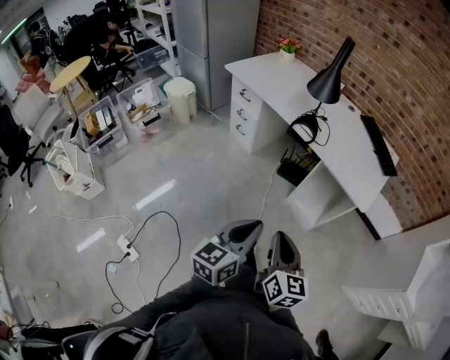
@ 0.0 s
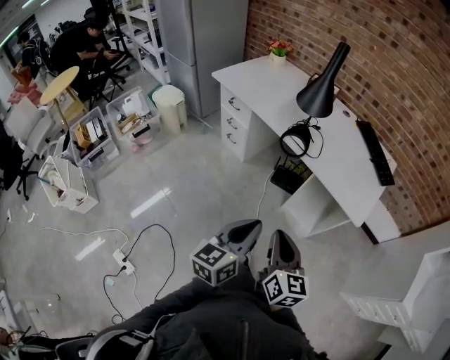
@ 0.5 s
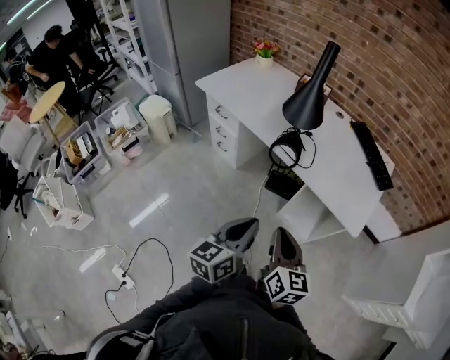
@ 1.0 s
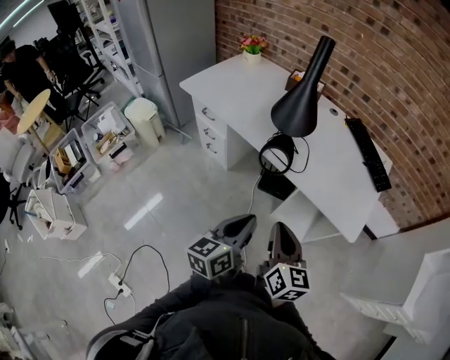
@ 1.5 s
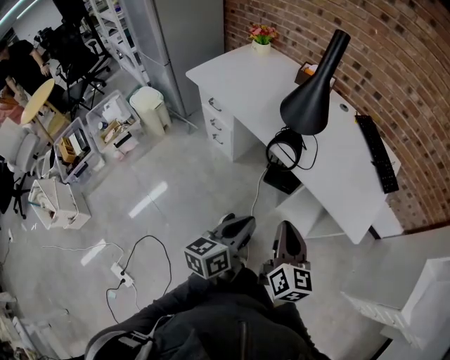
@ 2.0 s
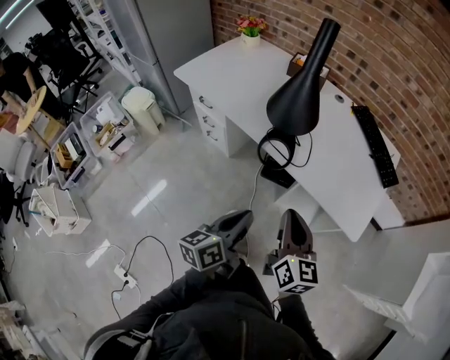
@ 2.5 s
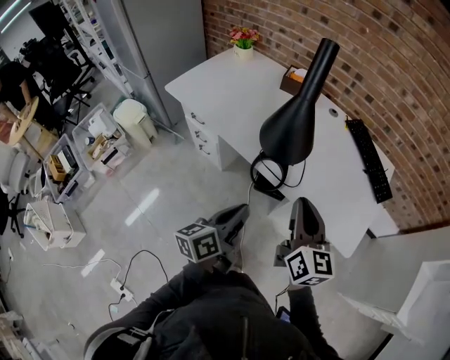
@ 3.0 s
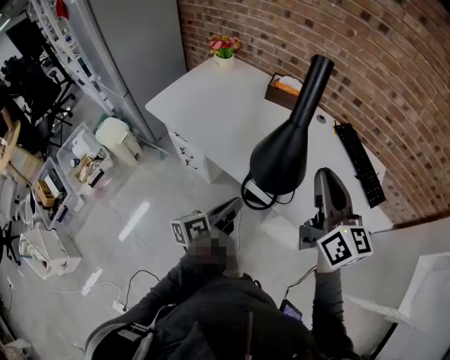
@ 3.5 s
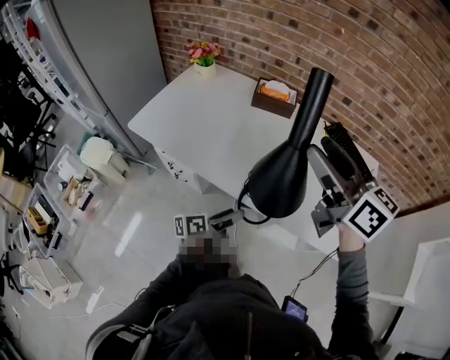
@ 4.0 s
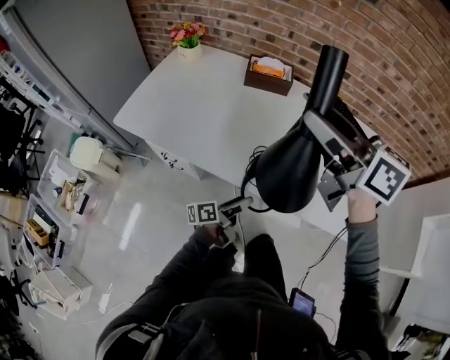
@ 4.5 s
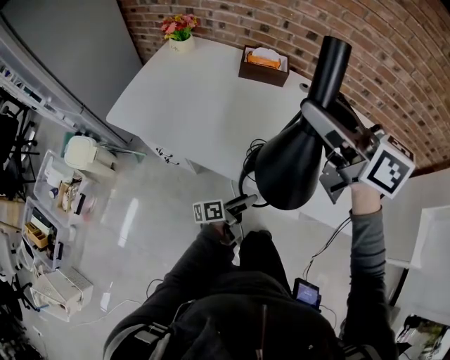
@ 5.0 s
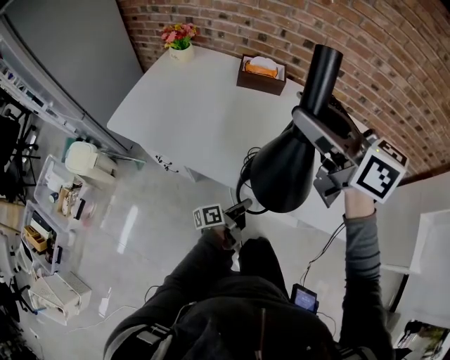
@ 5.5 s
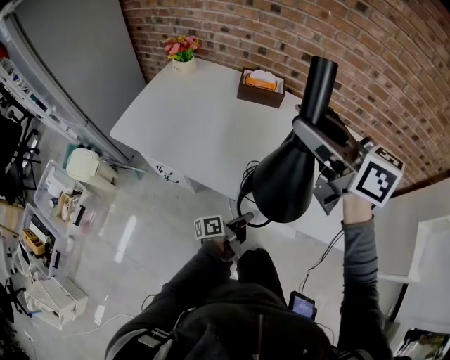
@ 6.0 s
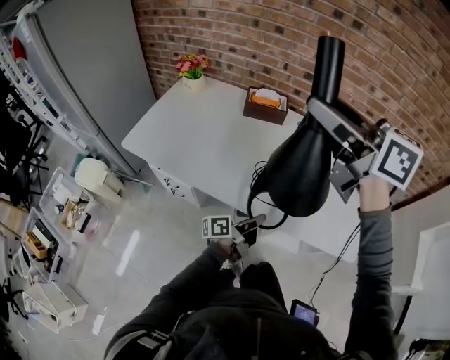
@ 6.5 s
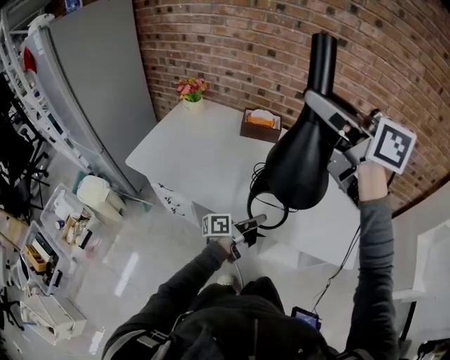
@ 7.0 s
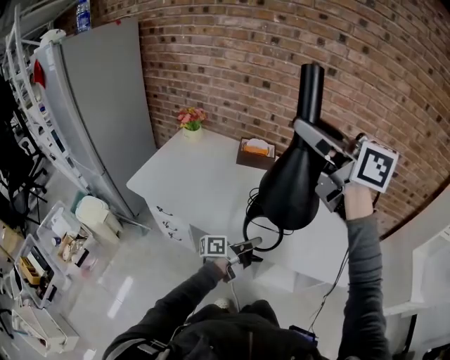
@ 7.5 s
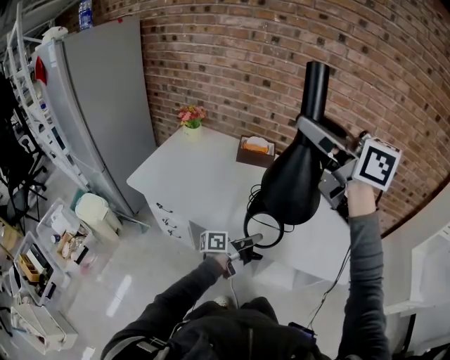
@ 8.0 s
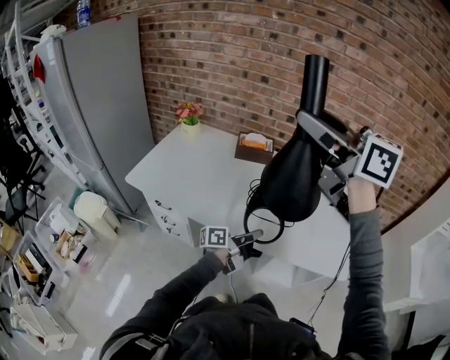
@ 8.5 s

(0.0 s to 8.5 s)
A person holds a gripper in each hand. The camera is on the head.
0.0 s - 2.0 s: Both grippers move forward, about 25 cm.
2.0 s - 4.0 s: The left gripper goes about 25 cm forward, rotates roughly 40 degrees, and opens up. Meanwhile the right gripper shifts about 40 cm forward and upward, swivels roughly 20 degrees, and opens its fingers.
4.0 s - 6.5 s: The right gripper heads upward, covering approximately 10 cm, while the left gripper moves to the right, about 10 cm, moves about 10 cm downward and comes back, and closes up.
6.5 s - 8.5 s: The left gripper is displaced upward by about 5 cm. Meanwhile the right gripper moves upward and backward, roughly 10 cm.

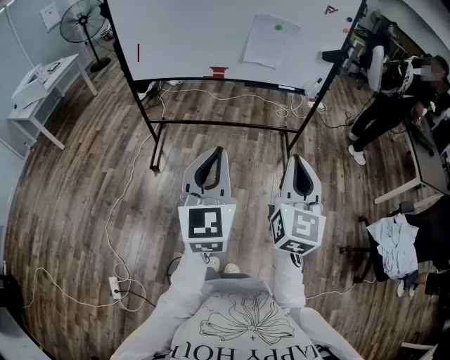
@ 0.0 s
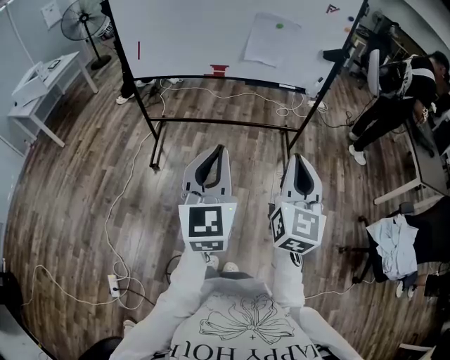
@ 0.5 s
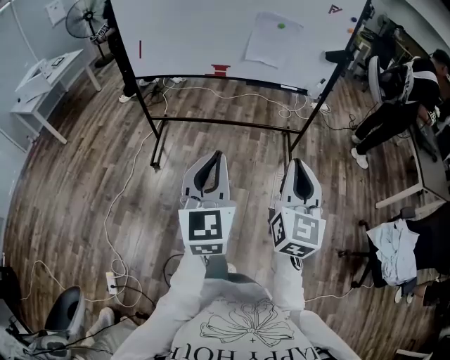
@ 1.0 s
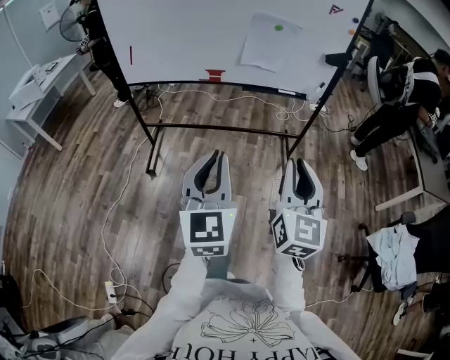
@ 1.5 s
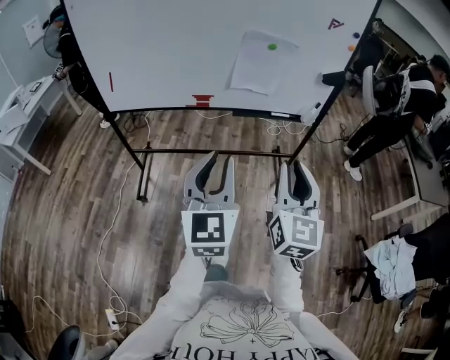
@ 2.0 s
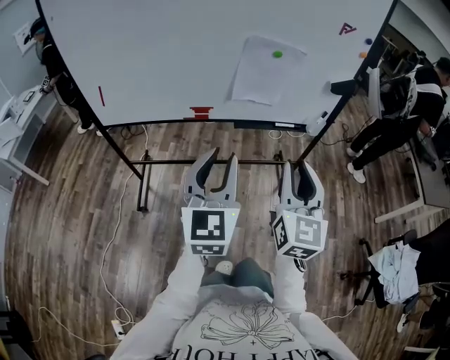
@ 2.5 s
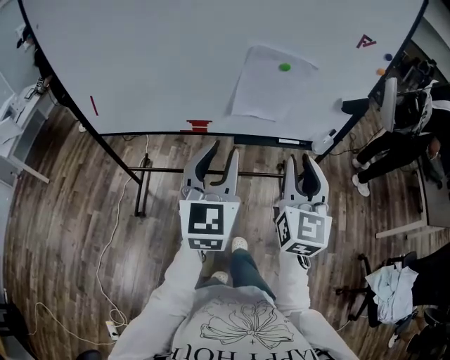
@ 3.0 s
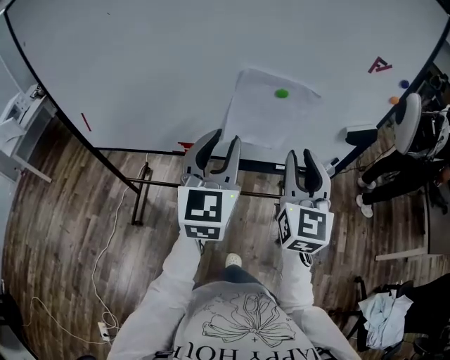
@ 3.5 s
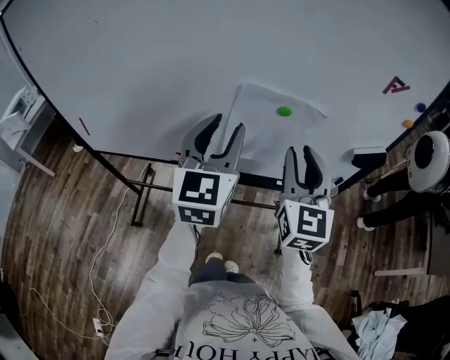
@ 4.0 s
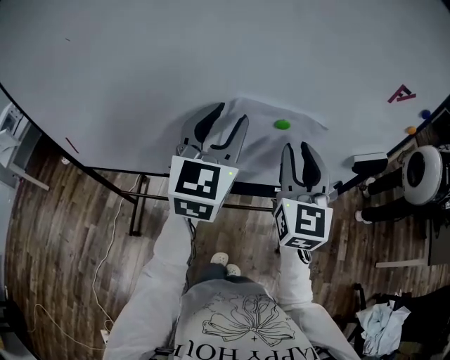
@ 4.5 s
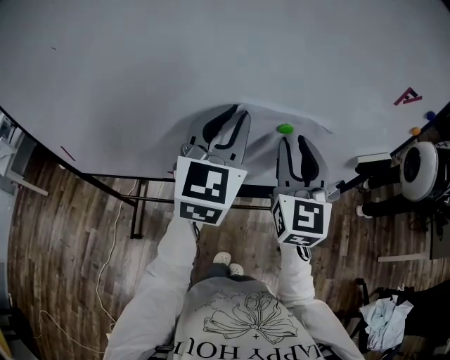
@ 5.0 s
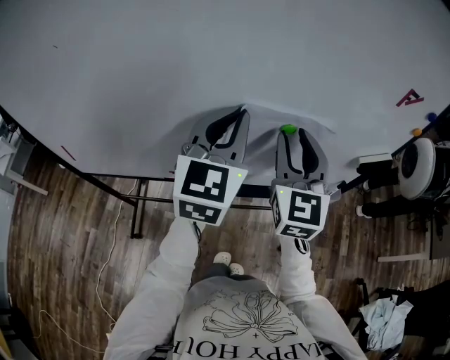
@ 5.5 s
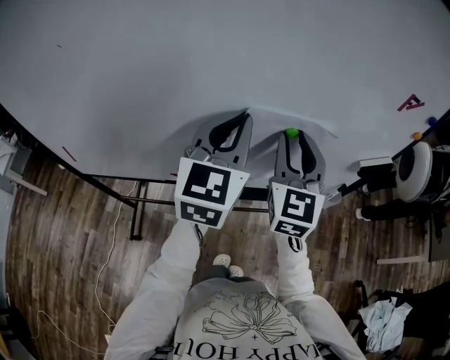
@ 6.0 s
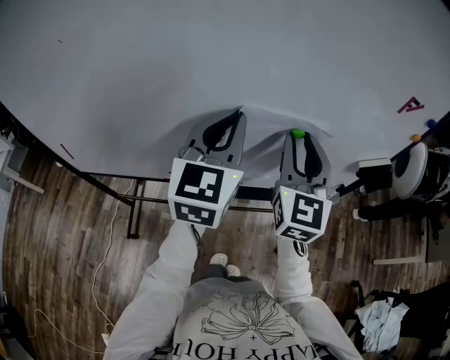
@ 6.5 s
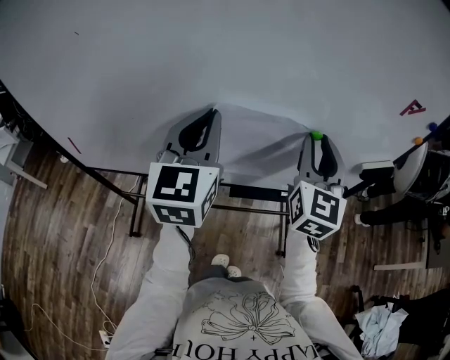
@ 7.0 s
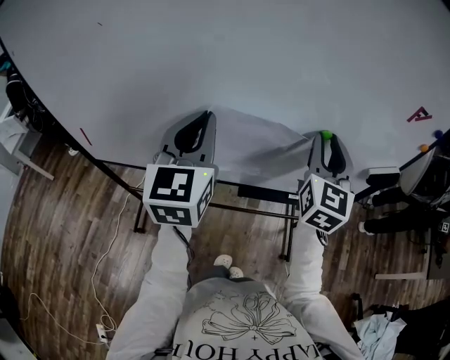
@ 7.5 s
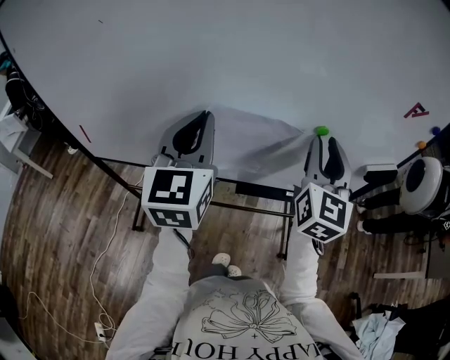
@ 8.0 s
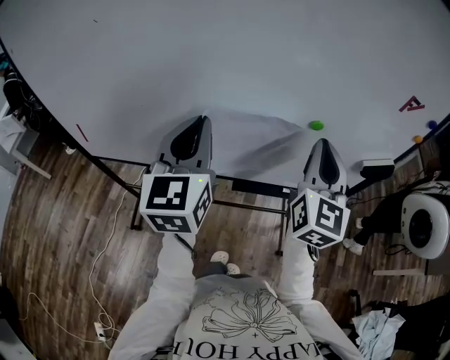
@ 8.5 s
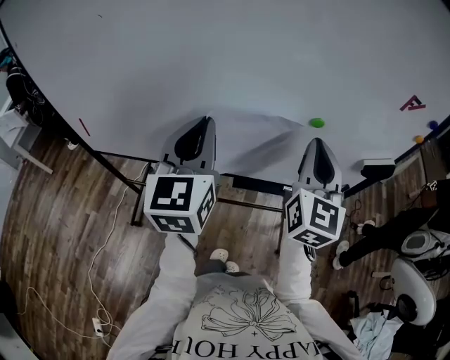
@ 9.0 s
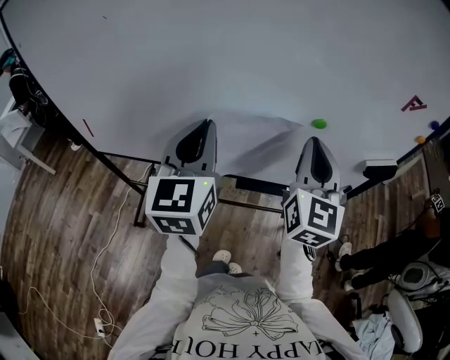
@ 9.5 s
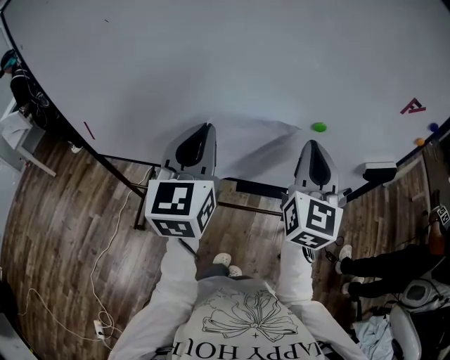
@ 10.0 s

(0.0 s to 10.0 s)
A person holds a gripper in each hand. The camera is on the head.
0.0 s - 2.0 s: Both grippers travel together forward, about 25 cm.
2.0 s - 4.0 s: Both grippers are carried forward, approximately 50 cm.
4.0 s - 6.0 s: Both grippers move forward, some 10 cm. The left gripper closes.
6.0 s - 8.0 s: The left gripper shifts approximately 10 cm to the left and backward. Meanwhile the right gripper shifts by approximately 5 cm.
8.0 s - 10.0 s: The right gripper closes up.

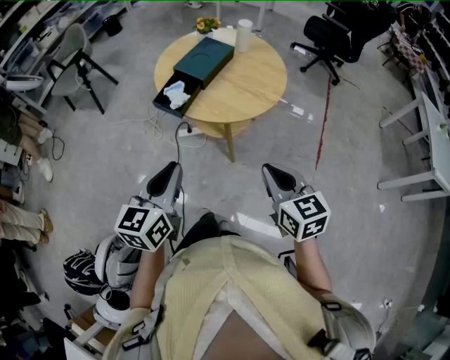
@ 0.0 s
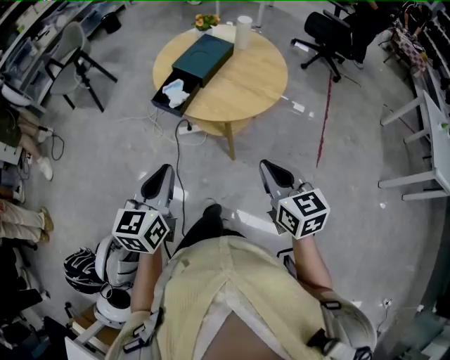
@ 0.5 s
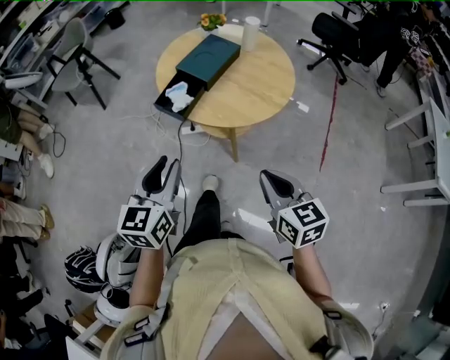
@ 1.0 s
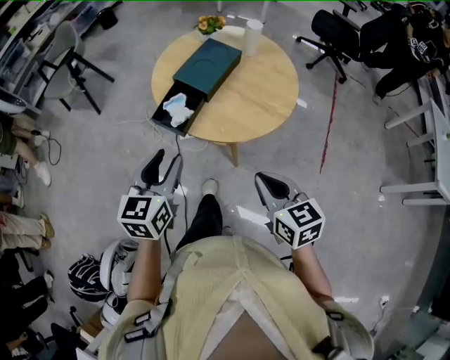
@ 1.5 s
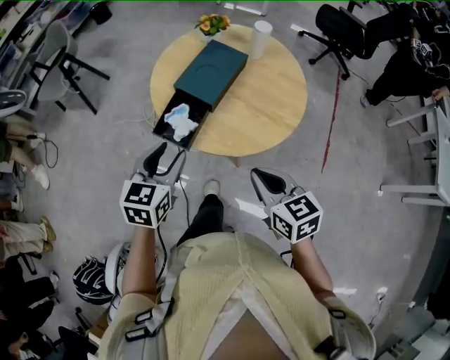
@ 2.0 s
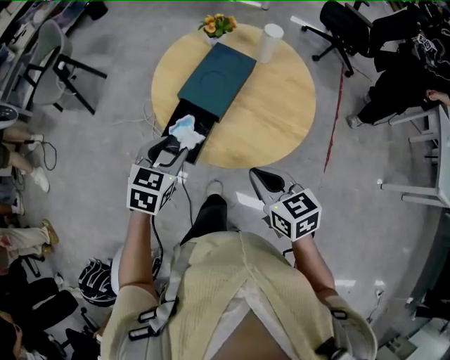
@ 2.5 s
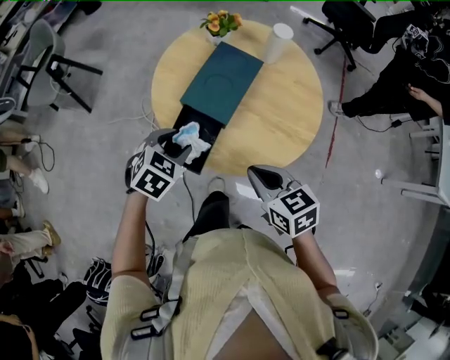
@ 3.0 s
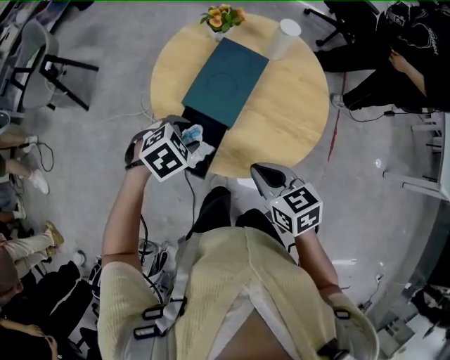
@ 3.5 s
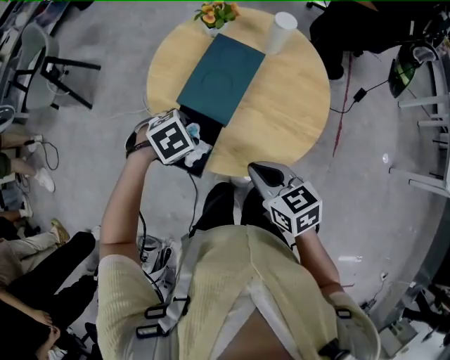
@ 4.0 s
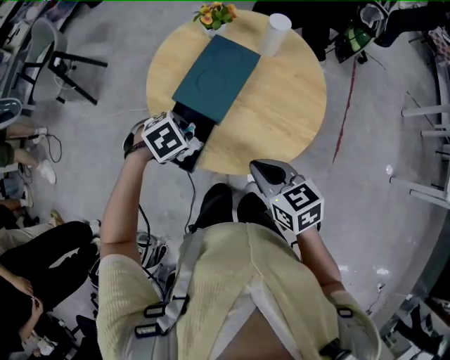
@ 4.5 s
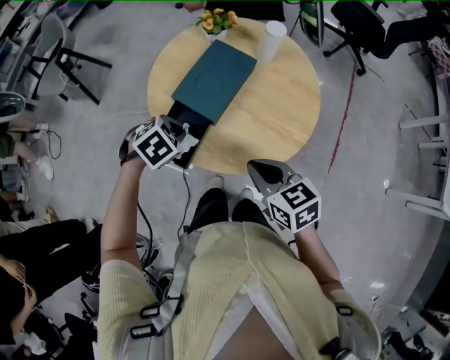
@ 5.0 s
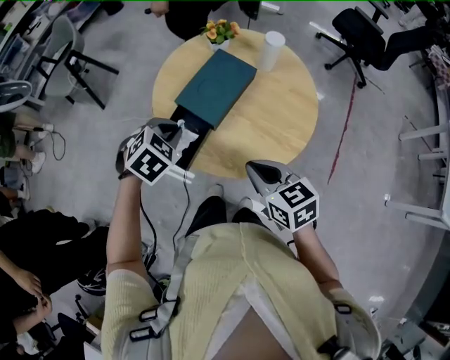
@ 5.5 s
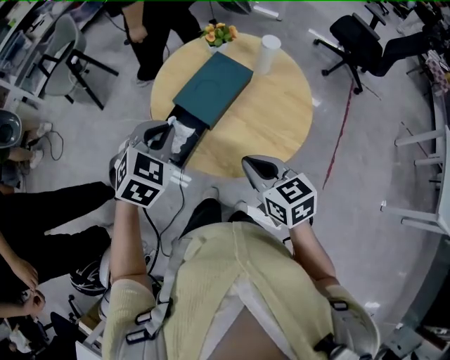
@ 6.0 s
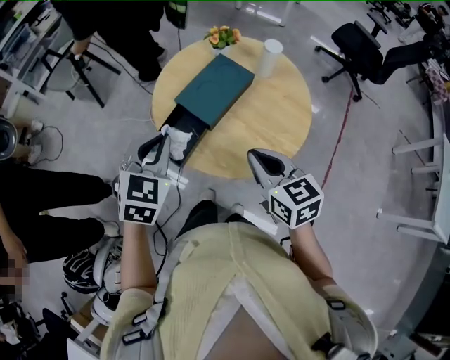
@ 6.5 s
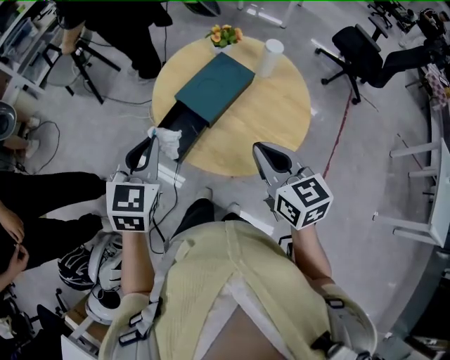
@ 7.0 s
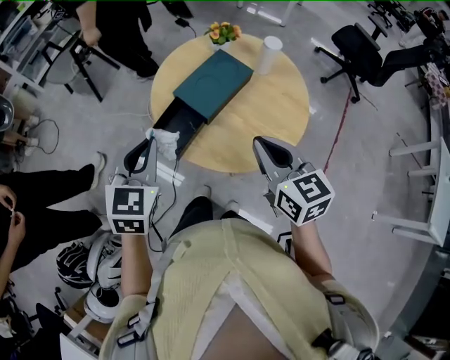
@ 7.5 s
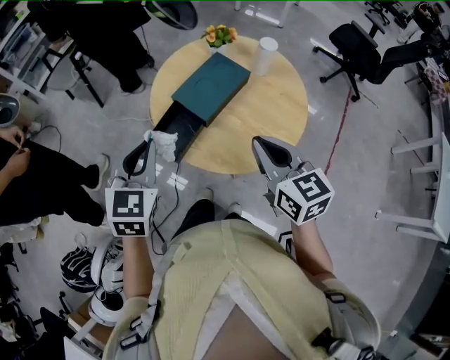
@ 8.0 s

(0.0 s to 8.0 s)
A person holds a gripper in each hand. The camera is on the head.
0.0 s - 2.0 s: Both grippers travel together forward, some 20 cm. The left gripper opens its fingers.
2.0 s - 4.0 s: The right gripper moves some 15 cm. The left gripper goes approximately 15 cm downward, and tips its fingers downward by some 40 degrees.
4.0 s - 6.0 s: The left gripper moves upward, approximately 15 cm, changes its angle by approximately 50 degrees, and closes. Meanwhile the right gripper is displaced upward by approximately 5 cm.
6.0 s - 8.0 s: The right gripper travels upward by approximately 10 cm; the left gripper shifts roughly 5 cm backward, and turns by roughly 30 degrees.
